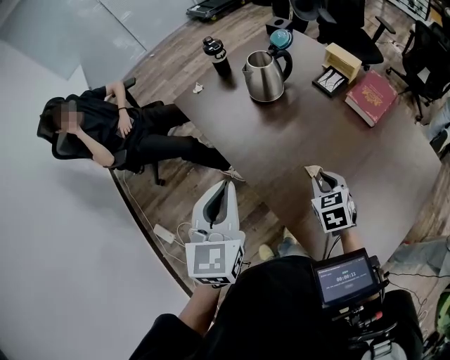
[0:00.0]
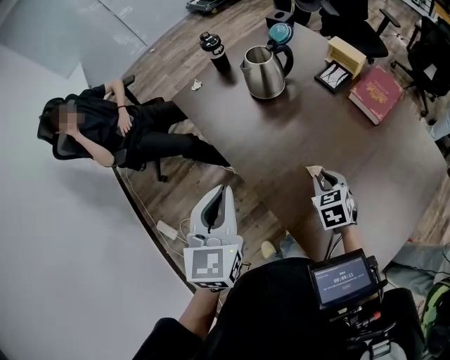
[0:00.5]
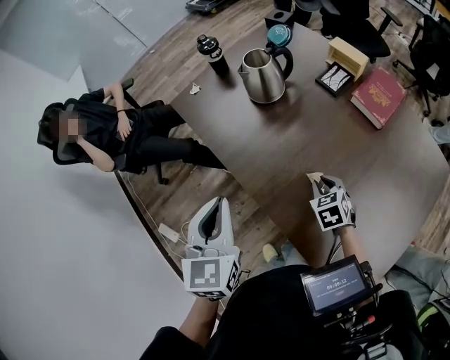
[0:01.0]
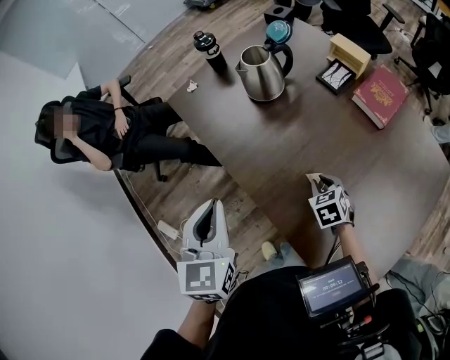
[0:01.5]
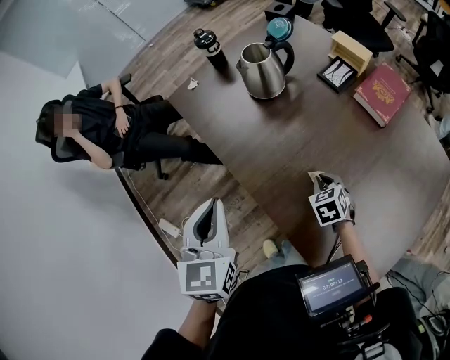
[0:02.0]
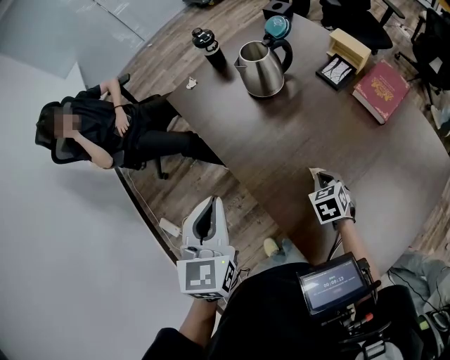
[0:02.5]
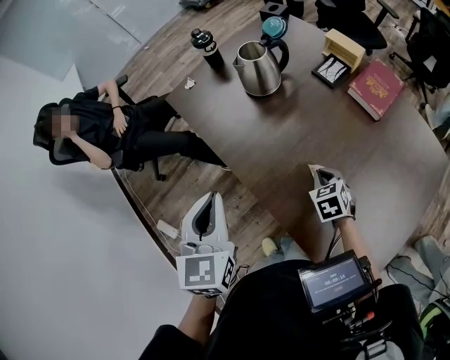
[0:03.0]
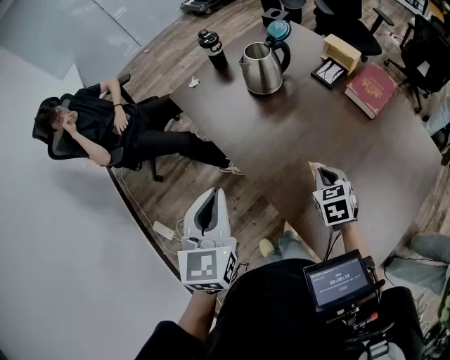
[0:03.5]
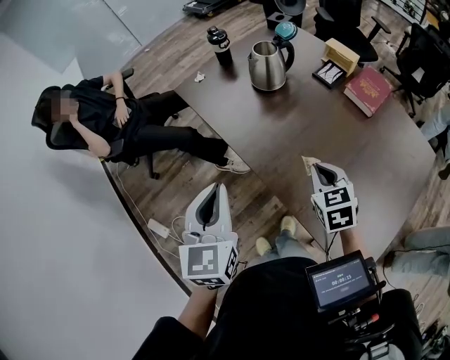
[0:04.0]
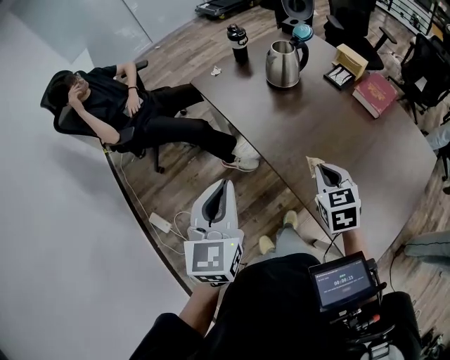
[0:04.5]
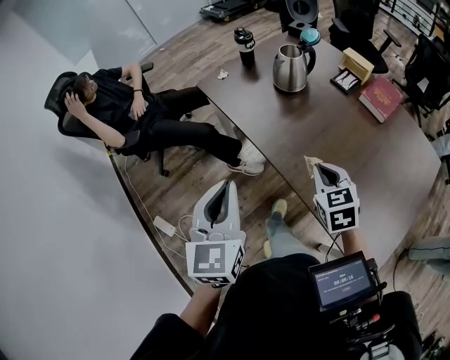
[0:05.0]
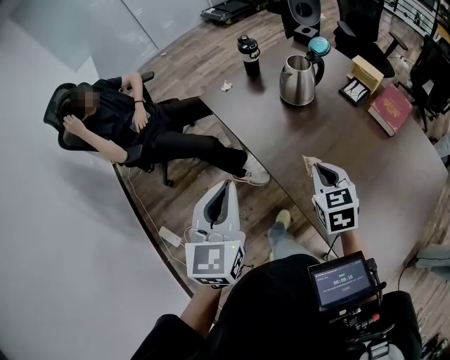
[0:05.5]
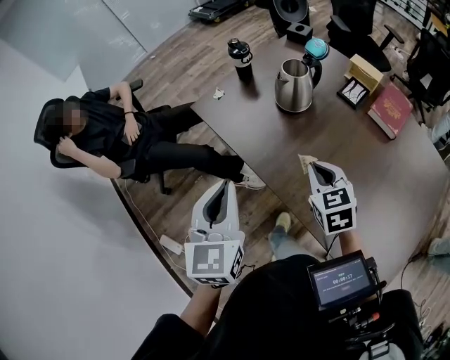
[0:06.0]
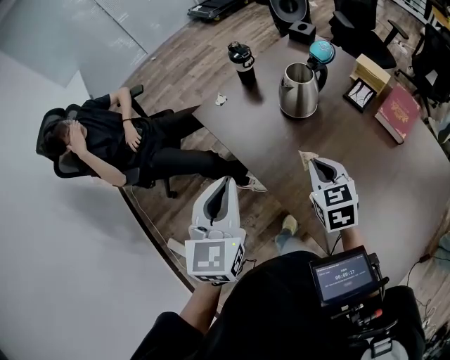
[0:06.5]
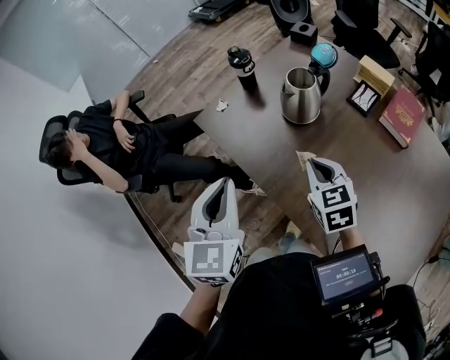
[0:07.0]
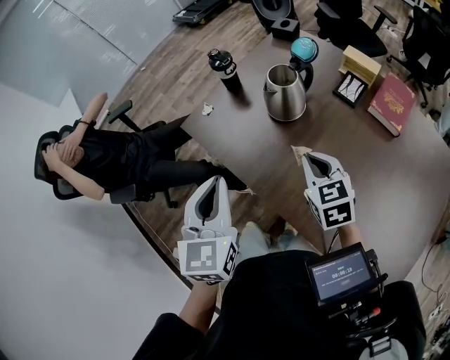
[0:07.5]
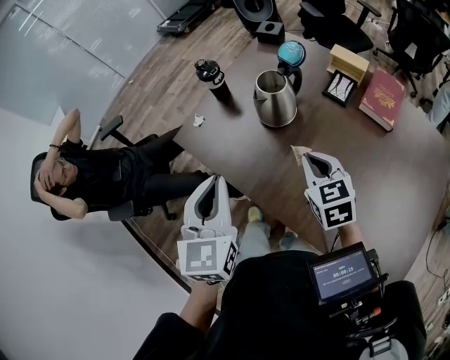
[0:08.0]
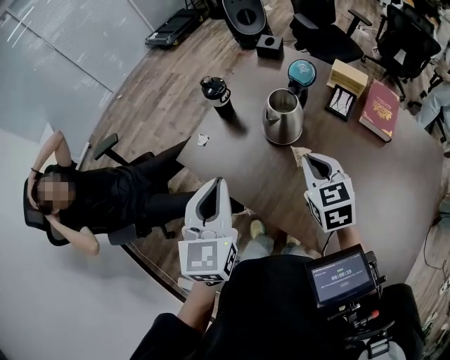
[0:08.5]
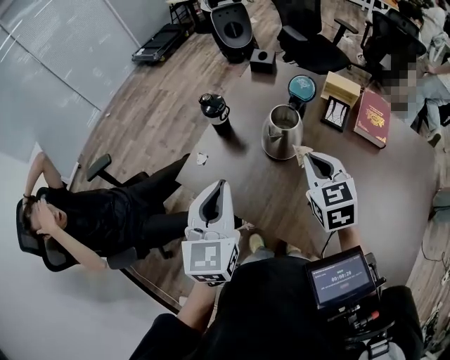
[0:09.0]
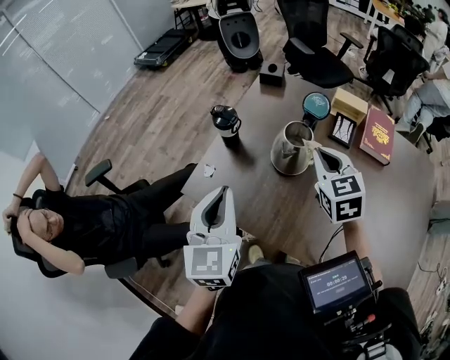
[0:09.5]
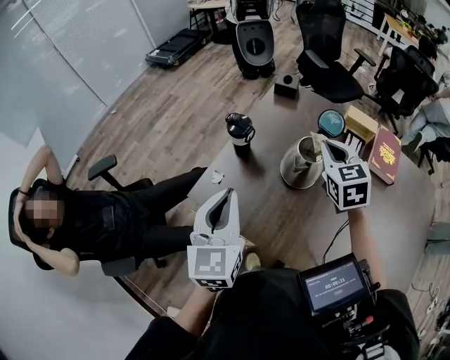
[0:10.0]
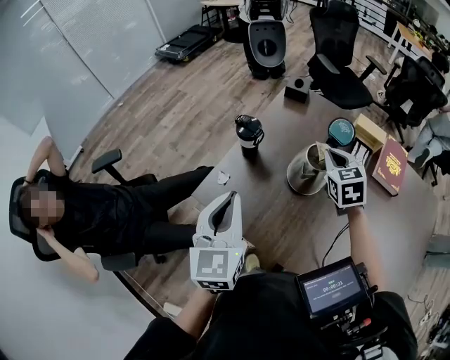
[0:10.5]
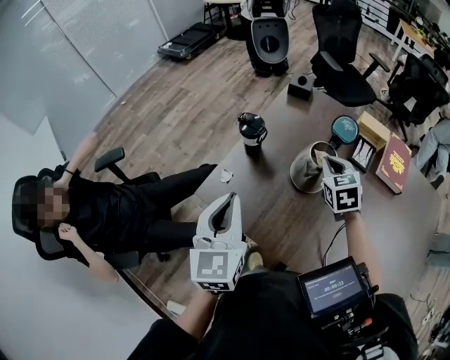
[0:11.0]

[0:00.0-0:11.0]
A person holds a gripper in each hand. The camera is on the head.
0:00.0 to 0:02.0: The right gripper shifts some 10 cm downward.
0:02.0 to 0:03.5: The right gripper goes approximately 10 cm upward.
0:03.5 to 0:05.5: The left gripper heads to the left, covering about 10 cm, while the right gripper heads to the left and upward, covering some 20 cm.
0:05.5 to 0:07.5: Both grippers move forward, some 15 cm.
0:07.5 to 0:09.0: The left gripper heads forward and to the left, covering about 15 cm; the right gripper is displaced forward and upward by approximately 10 cm.
0:09.0 to 0:11.0: The right gripper travels forward by about 15 cm. Meanwhile the left gripper goes about 10 cm to the left and forward.

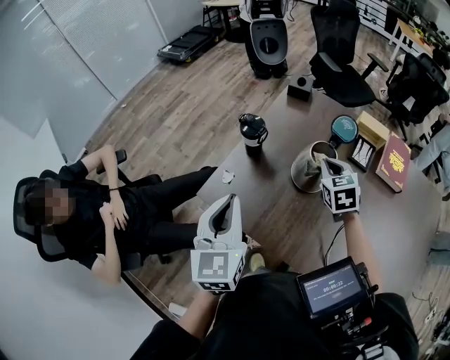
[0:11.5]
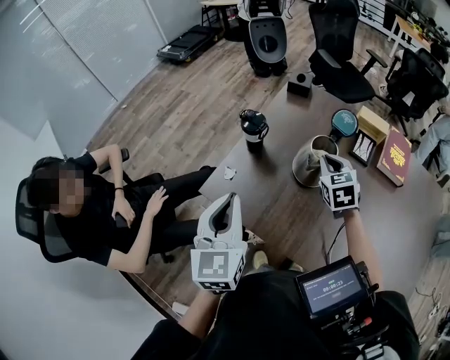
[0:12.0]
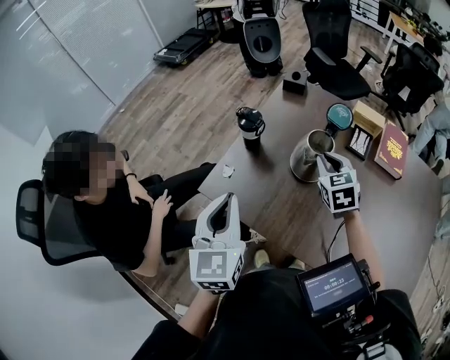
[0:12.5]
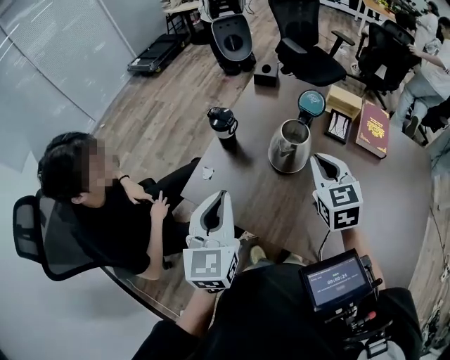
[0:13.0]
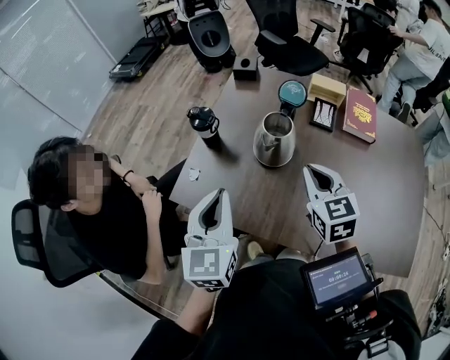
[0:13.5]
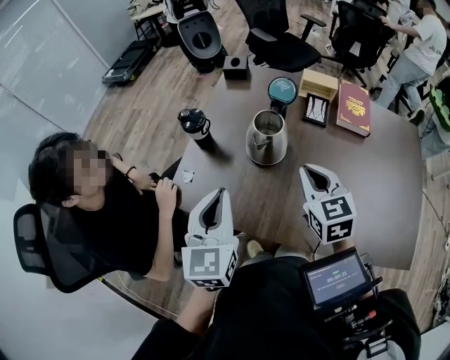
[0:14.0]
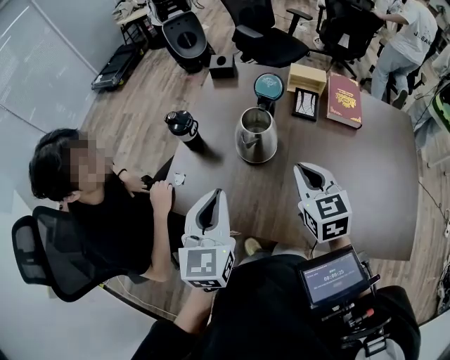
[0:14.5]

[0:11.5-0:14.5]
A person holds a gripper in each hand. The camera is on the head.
0:11.5 to 0:13.0: The right gripper goes about 10 cm backward and upward.
0:13.0 to 0:14.5: The left gripper is displaced to the right by about 5 cm. The right gripper moves backward, roughly 5 cm.

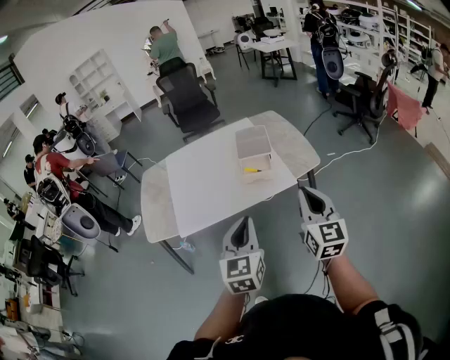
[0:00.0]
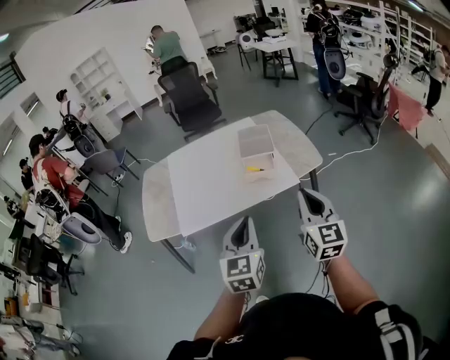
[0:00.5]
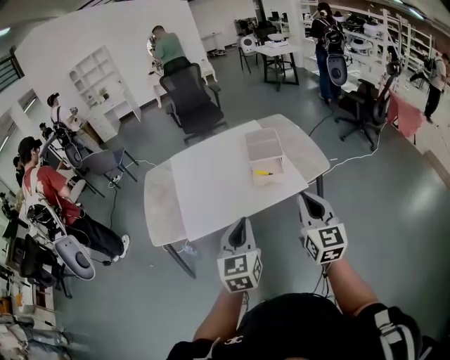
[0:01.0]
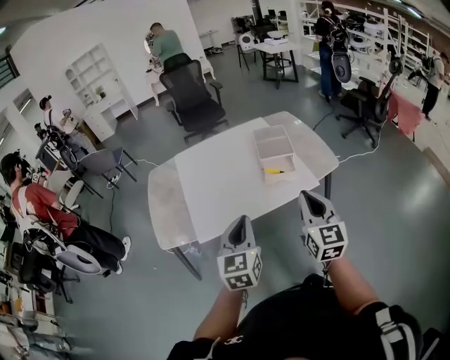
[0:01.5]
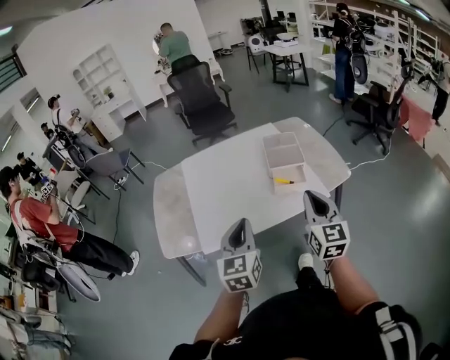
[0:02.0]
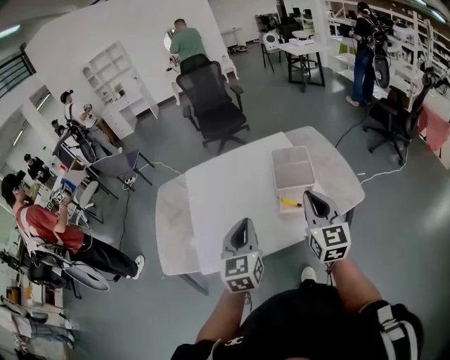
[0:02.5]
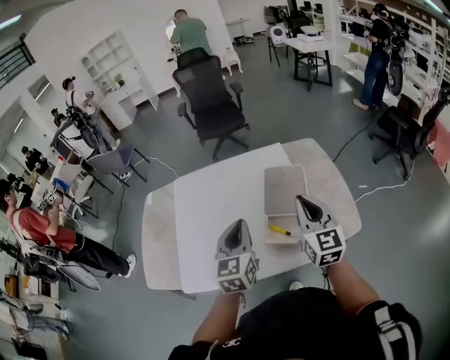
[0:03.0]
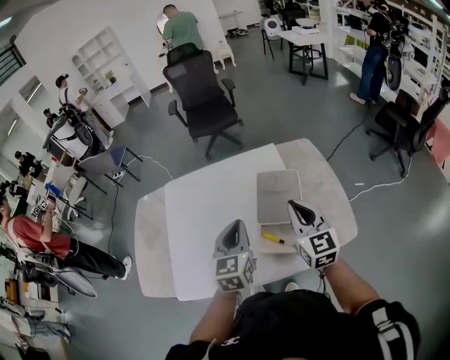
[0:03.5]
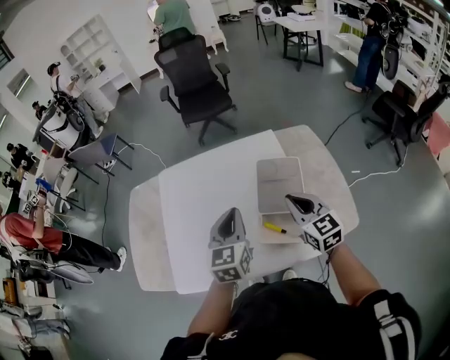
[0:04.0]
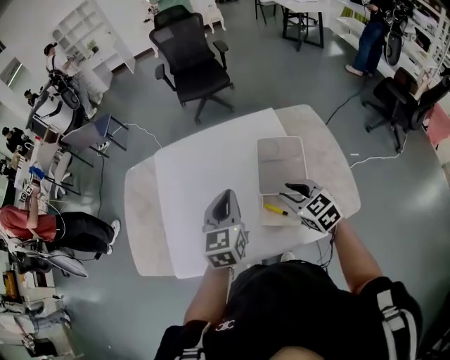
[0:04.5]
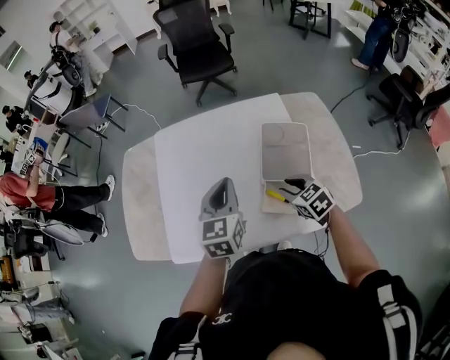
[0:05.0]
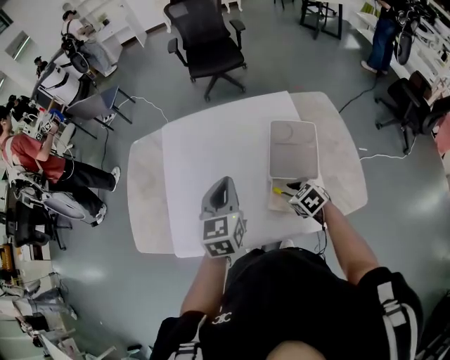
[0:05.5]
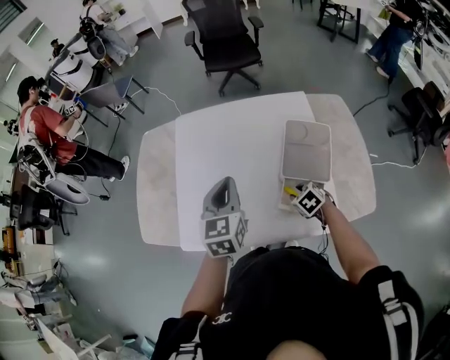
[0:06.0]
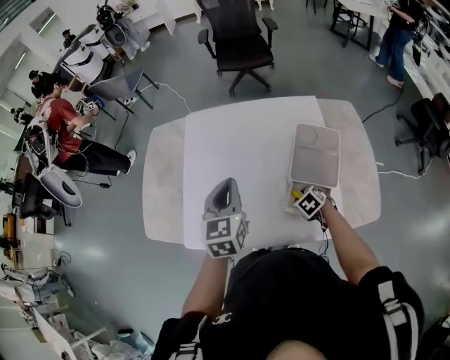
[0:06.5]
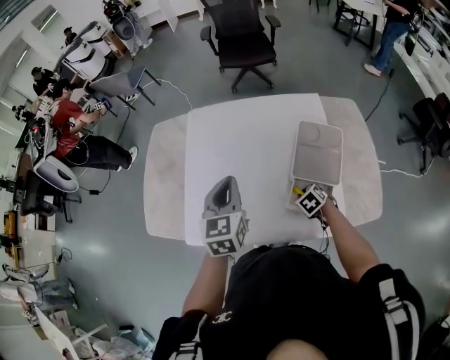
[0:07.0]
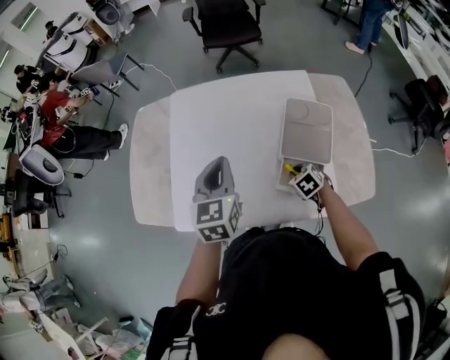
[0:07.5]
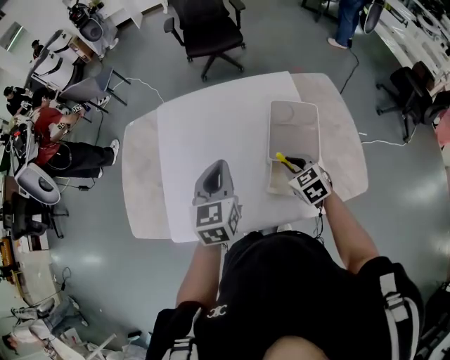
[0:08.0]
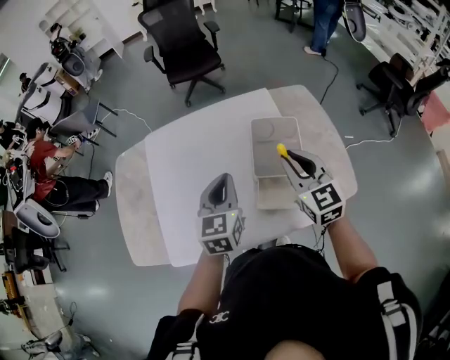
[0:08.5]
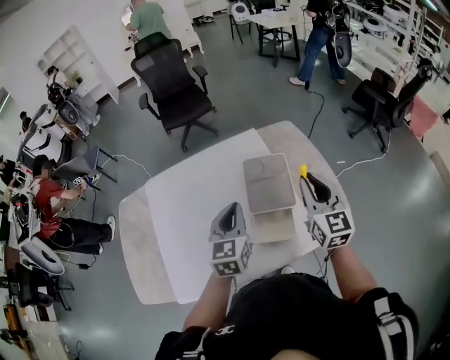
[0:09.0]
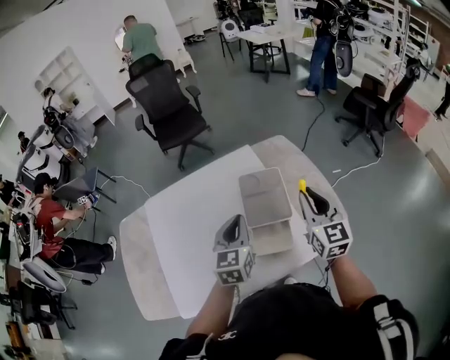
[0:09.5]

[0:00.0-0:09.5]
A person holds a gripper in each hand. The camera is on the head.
0:00.0 to 0:02.0: Both grippers move to the left and forward, roughly 20 cm.
0:02.0 to 0:04.0: The right gripper moves forward, about 35 cm, and turns by roughly 30 degrees. The left gripper is displaced forward and to the right by some 40 cm.
0:04.0 to 0:05.5: The left gripper is displaced to the left by about 5 cm; the right gripper heads downward, covering about 20 cm, points its fingers about 40 degrees further downward, and opens.
0:05.5 to 0:07.5: The right gripper shifts roughly 5 cm downward.
0:07.5 to 0:09.5: The left gripper ends up about 15 cm from where it was, and swivels some 20 degrees, while the right gripper goes some 30 cm upward, and points its fingers some 60 degrees further upward.

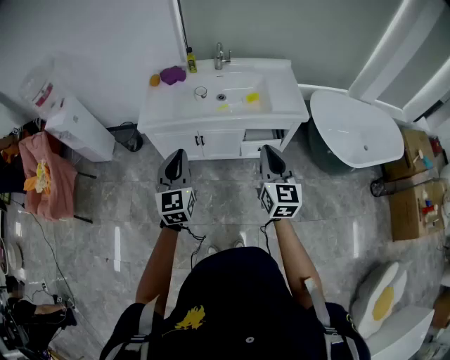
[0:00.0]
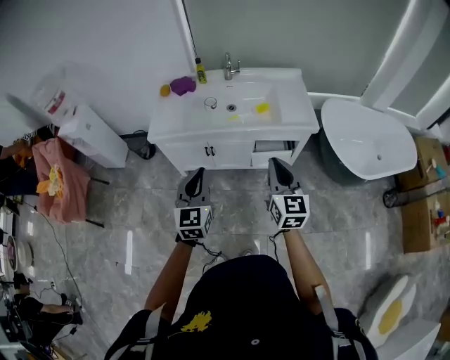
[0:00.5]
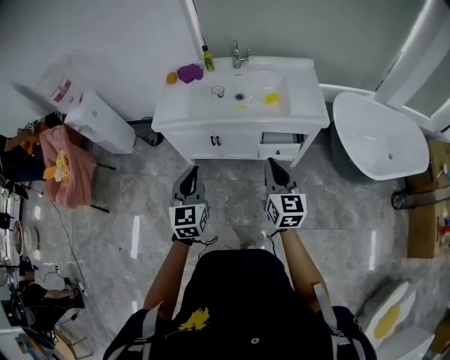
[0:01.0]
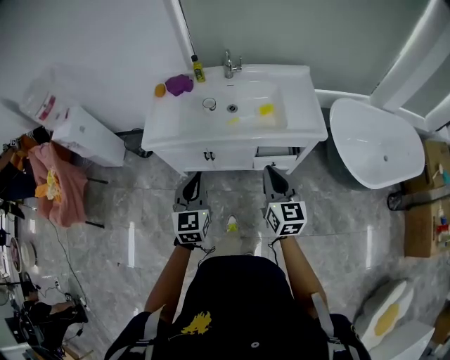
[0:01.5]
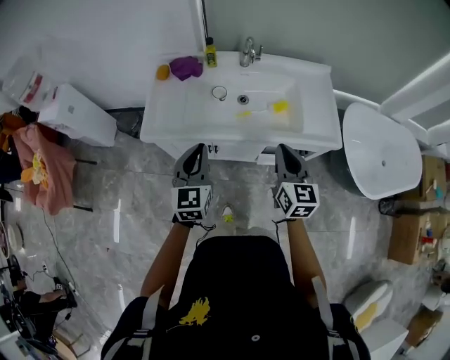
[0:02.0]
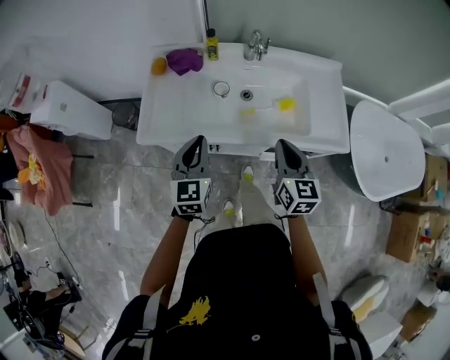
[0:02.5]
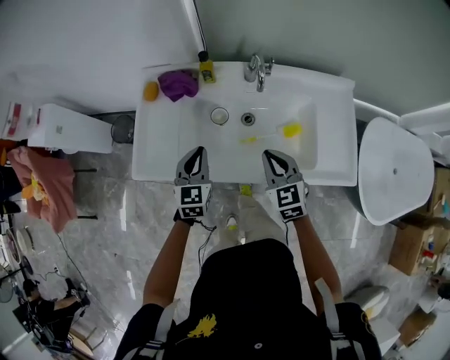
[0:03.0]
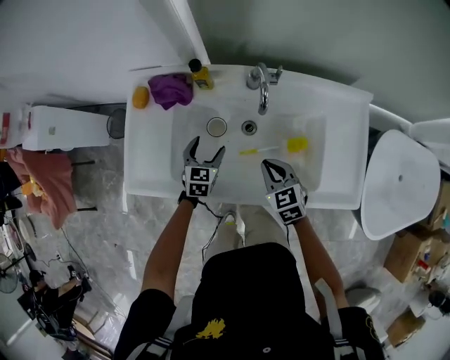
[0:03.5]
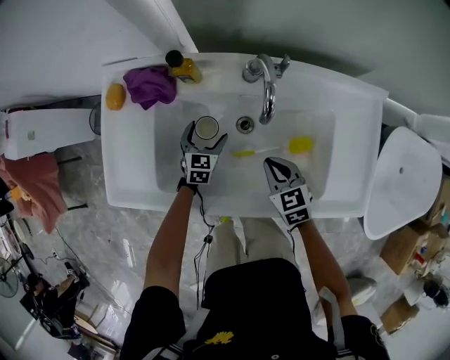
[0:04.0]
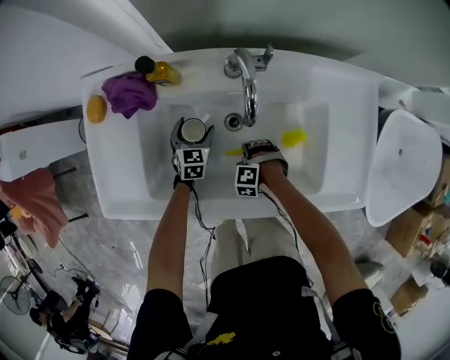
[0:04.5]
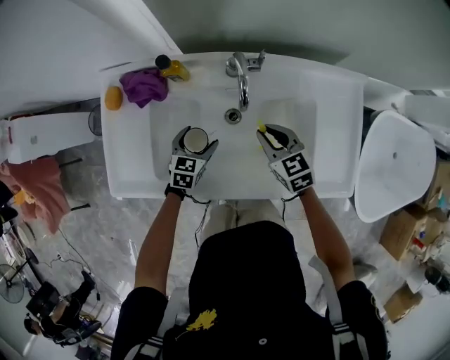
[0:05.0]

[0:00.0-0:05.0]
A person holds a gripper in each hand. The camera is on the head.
0:00.0 to 0:02.5: Both grippers travel together forward, roughly 30 cm.
0:02.5 to 0:05.0: The left gripper moves about 40 cm, changes its angle by approximately 30 degrees, and opens its fingers, while the right gripper ends up some 35 cm from where it was, and rotates approximately 30 degrees.
